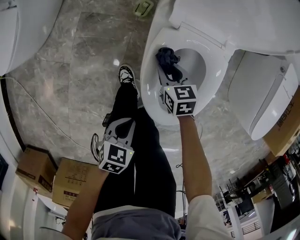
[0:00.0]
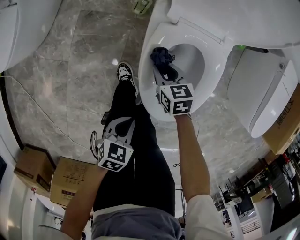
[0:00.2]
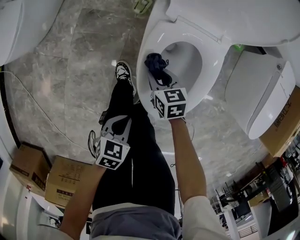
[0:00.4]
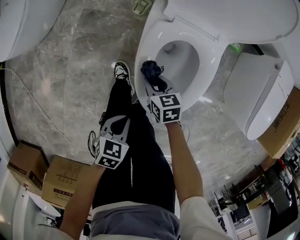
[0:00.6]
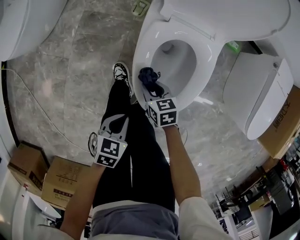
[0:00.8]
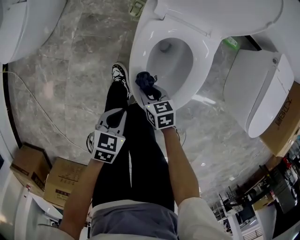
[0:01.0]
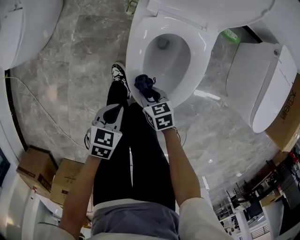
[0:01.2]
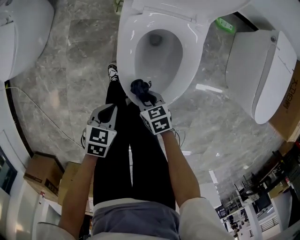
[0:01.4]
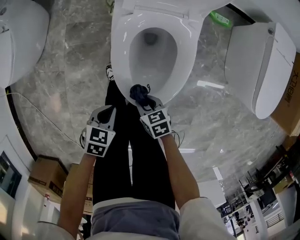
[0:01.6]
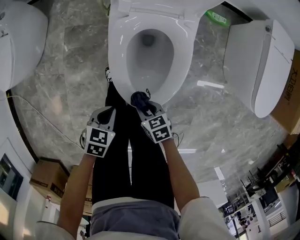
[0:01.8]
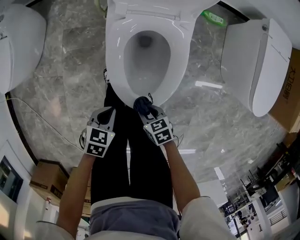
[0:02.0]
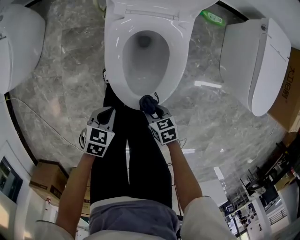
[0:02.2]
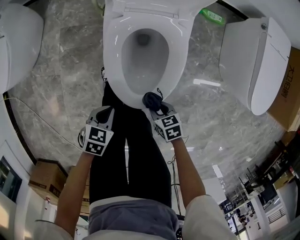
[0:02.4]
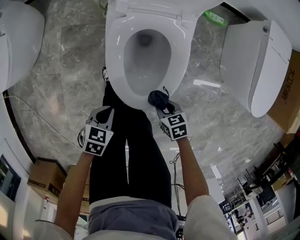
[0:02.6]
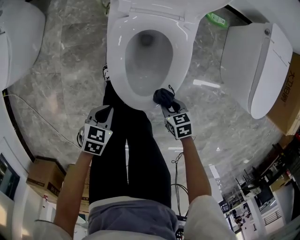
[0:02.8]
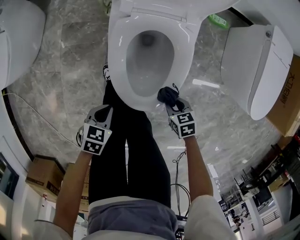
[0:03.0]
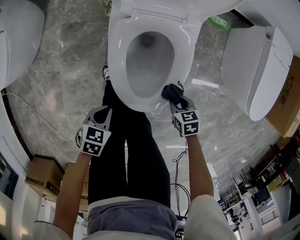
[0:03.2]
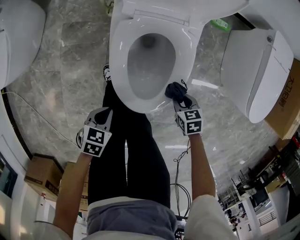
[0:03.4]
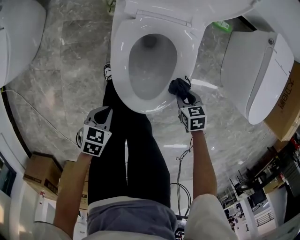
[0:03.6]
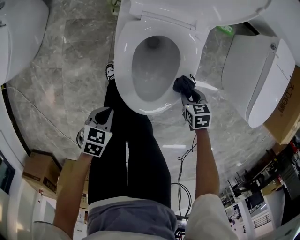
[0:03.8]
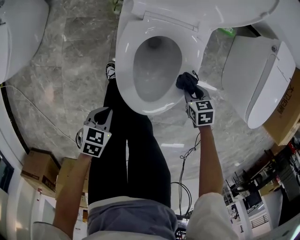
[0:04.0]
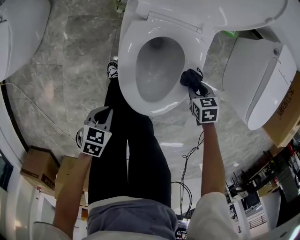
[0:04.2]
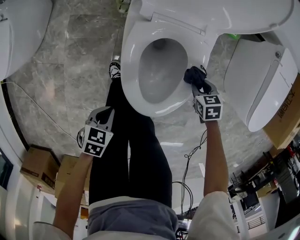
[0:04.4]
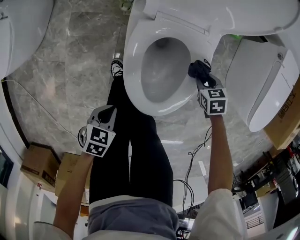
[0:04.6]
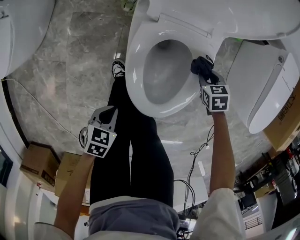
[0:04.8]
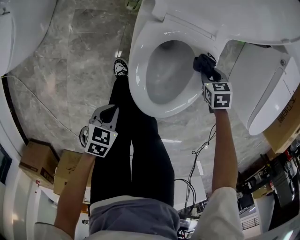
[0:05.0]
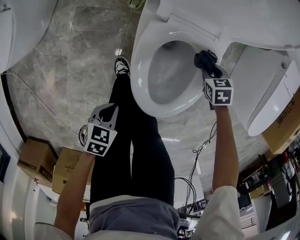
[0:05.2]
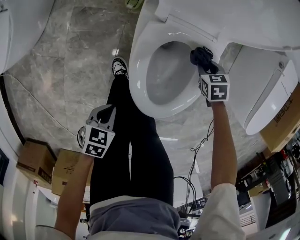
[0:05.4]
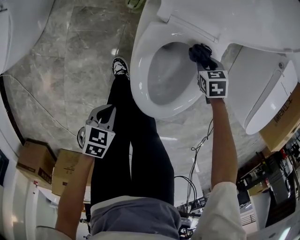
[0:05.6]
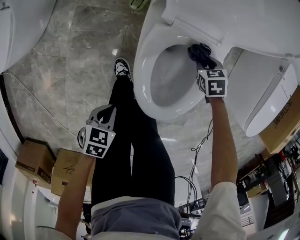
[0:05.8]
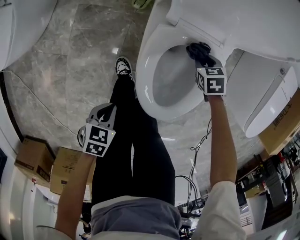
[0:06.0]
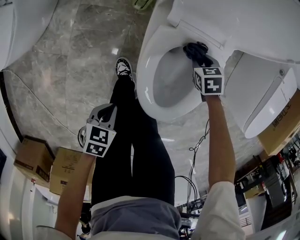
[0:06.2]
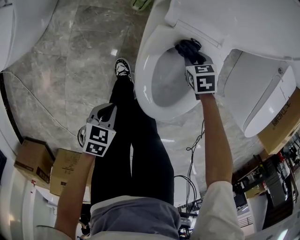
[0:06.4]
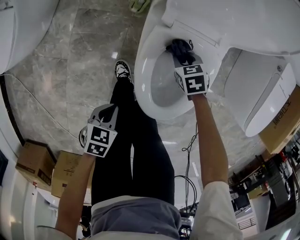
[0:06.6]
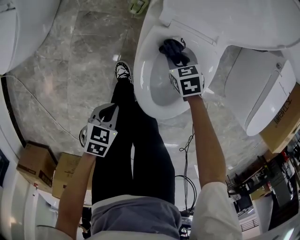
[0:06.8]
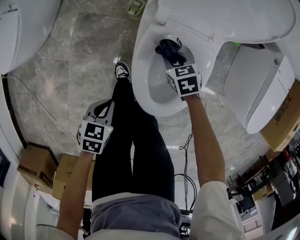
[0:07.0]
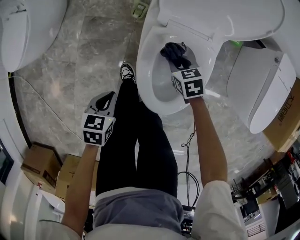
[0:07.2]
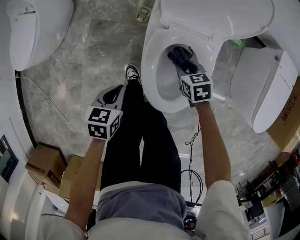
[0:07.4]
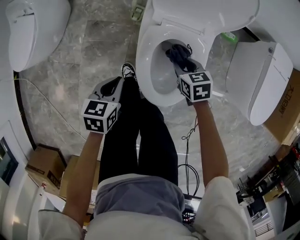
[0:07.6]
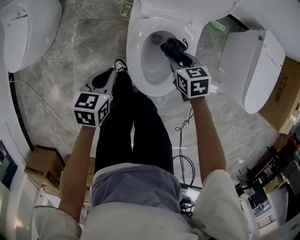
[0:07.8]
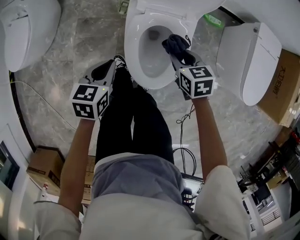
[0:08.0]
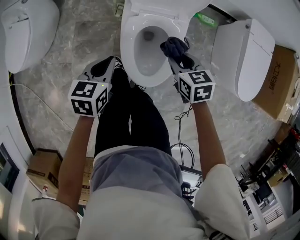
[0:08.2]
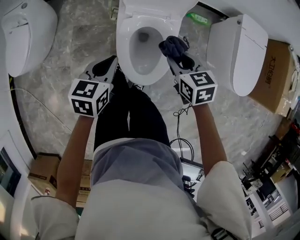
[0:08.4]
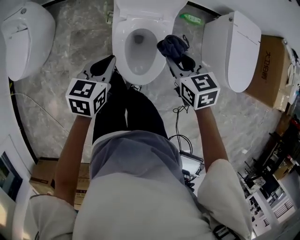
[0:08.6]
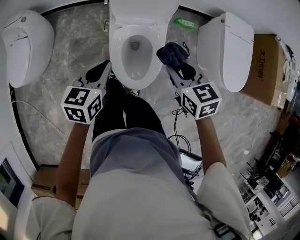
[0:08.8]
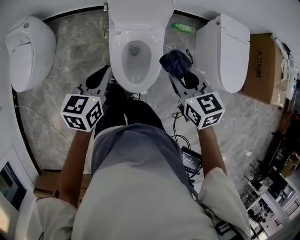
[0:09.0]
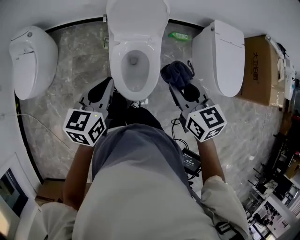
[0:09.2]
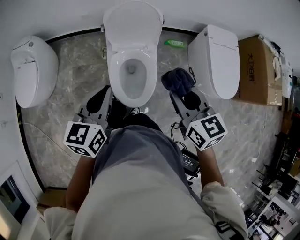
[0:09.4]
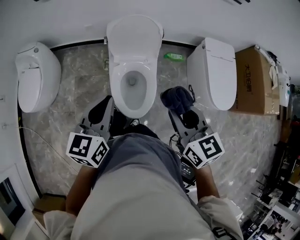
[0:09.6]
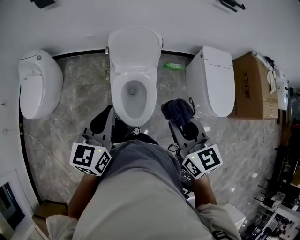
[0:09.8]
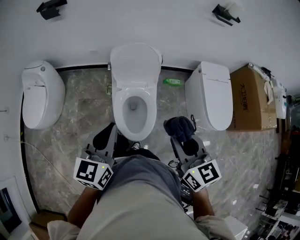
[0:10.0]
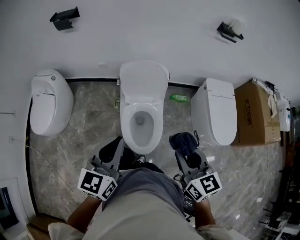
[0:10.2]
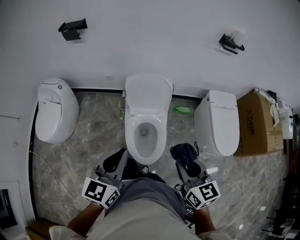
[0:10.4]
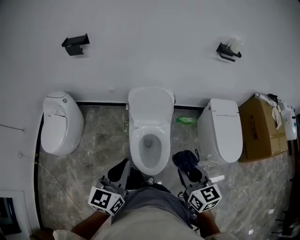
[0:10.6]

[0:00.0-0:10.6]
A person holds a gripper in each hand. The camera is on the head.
0:00.0 to 0:01.6: The right gripper goes about 20 cm backward.
0:01.6 to 0:03.0: The right gripper changes place by some 15 cm.
0:03.0 to 0:04.6: The right gripper travels forward by some 20 cm.
0:04.6 to 0:06.0: The right gripper ends up about 15 cm from where it was; the left gripper moves approximately 5 cm.
0:06.0 to 0:07.6: The right gripper shifts approximately 15 cm upward and backward, and turns by approximately 20 degrees. The left gripper travels upward and forward by about 15 cm, and changes its angle by roughly 20 degrees.
0:07.6 to 0:09.0: The left gripper is displaced upward and to the right by some 30 cm, and rotates about 20 degrees; the right gripper goes about 35 cm upward, and rotates roughly 20 degrees.
0:09.0 to 0:10.6: The two grippers go about 20 cm upward and backward. The left gripper changes its angle by approximately 20 degrees.

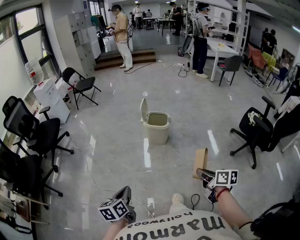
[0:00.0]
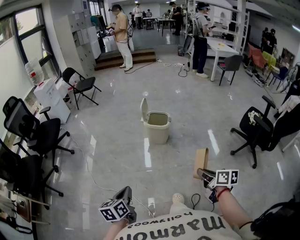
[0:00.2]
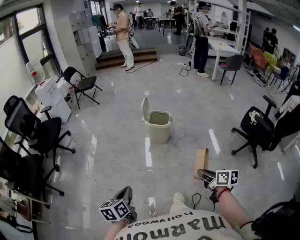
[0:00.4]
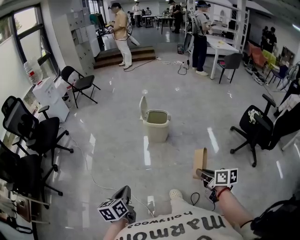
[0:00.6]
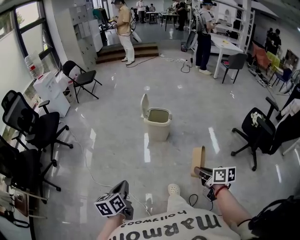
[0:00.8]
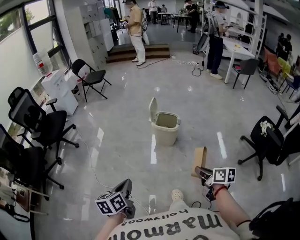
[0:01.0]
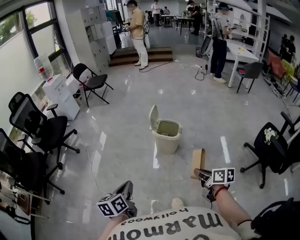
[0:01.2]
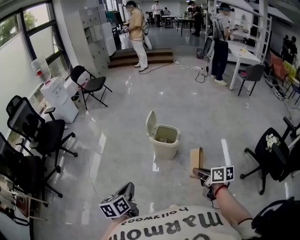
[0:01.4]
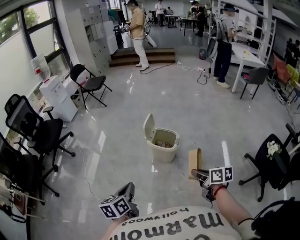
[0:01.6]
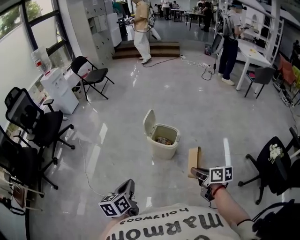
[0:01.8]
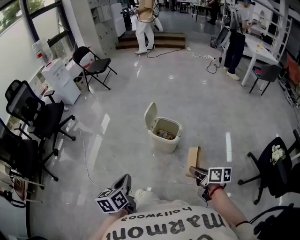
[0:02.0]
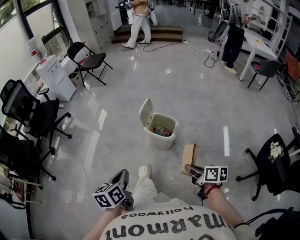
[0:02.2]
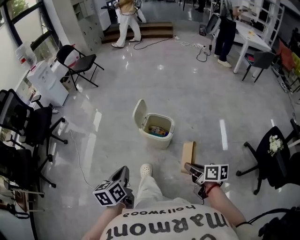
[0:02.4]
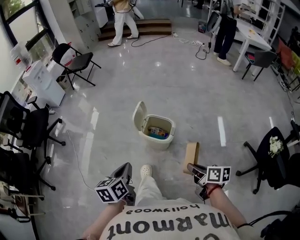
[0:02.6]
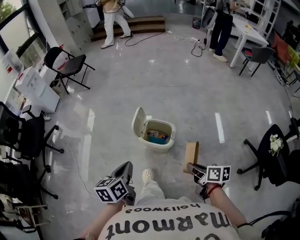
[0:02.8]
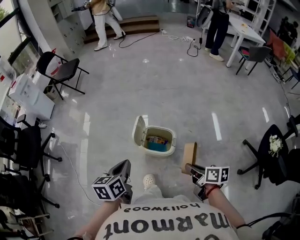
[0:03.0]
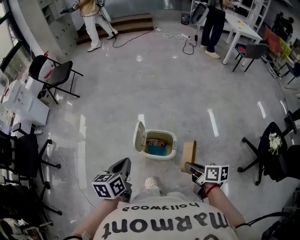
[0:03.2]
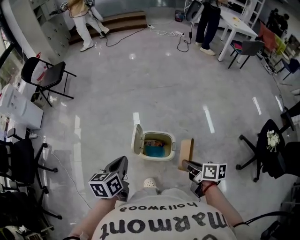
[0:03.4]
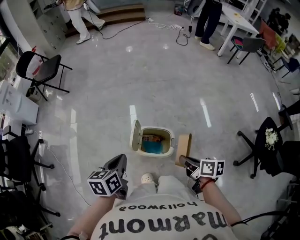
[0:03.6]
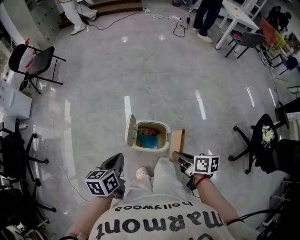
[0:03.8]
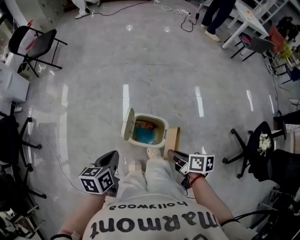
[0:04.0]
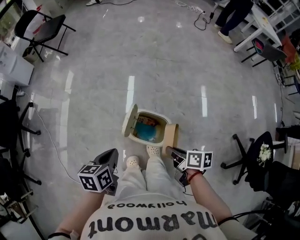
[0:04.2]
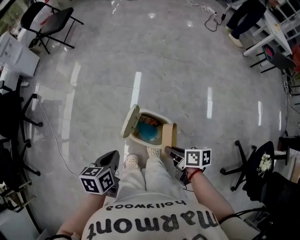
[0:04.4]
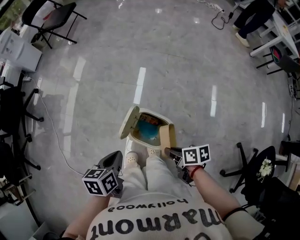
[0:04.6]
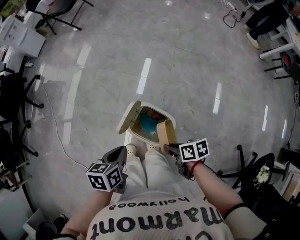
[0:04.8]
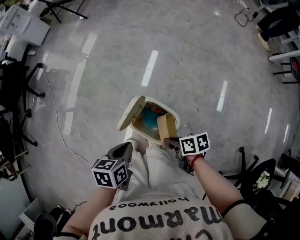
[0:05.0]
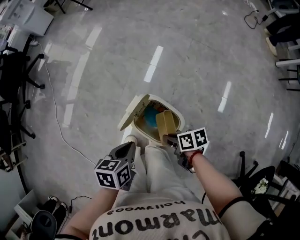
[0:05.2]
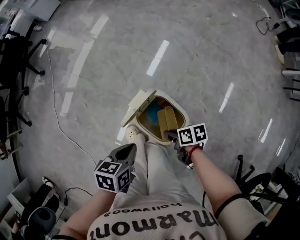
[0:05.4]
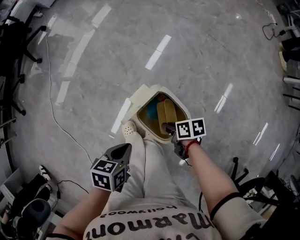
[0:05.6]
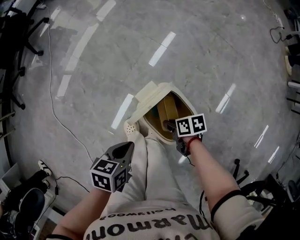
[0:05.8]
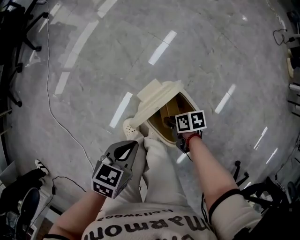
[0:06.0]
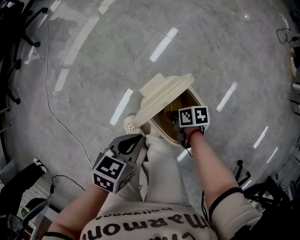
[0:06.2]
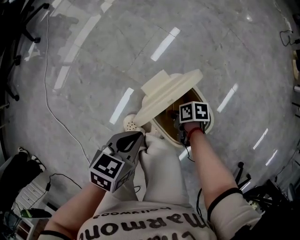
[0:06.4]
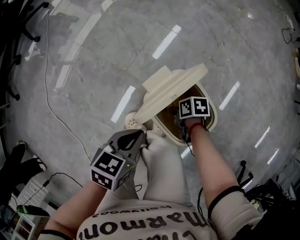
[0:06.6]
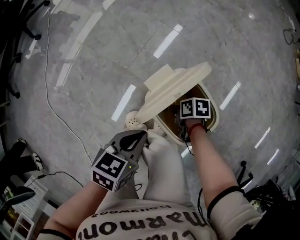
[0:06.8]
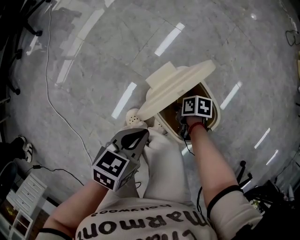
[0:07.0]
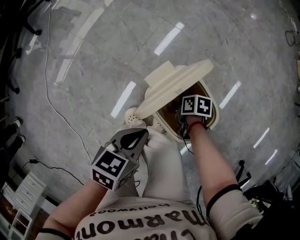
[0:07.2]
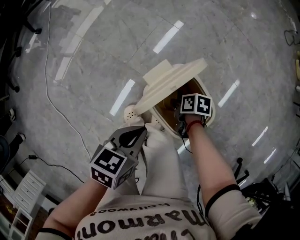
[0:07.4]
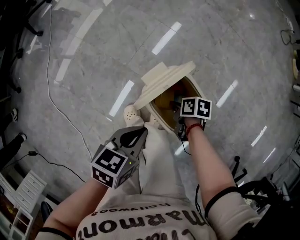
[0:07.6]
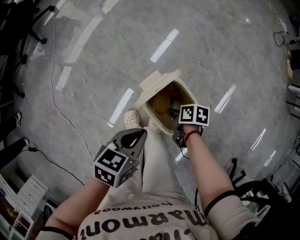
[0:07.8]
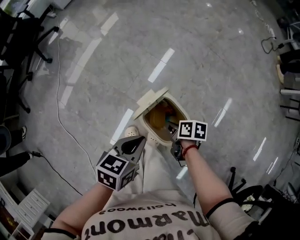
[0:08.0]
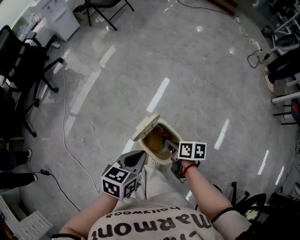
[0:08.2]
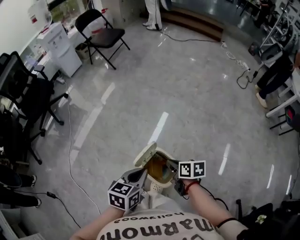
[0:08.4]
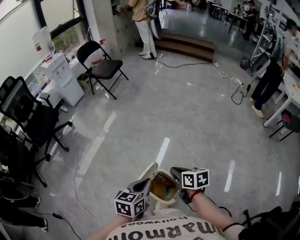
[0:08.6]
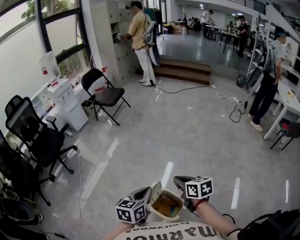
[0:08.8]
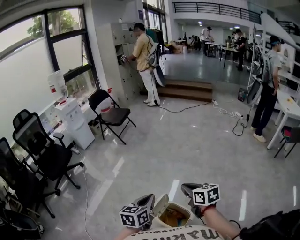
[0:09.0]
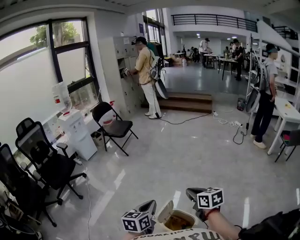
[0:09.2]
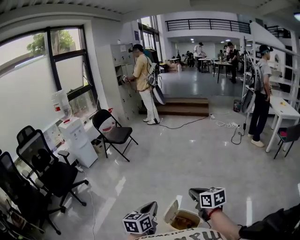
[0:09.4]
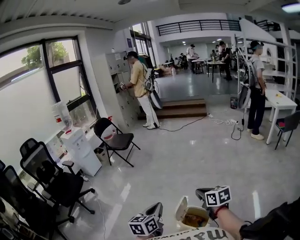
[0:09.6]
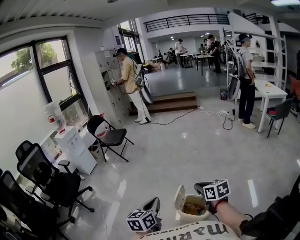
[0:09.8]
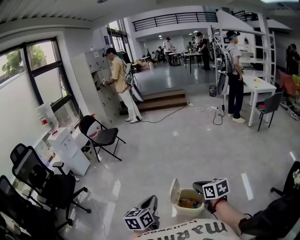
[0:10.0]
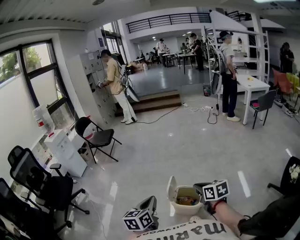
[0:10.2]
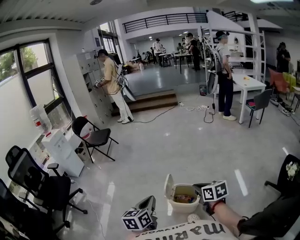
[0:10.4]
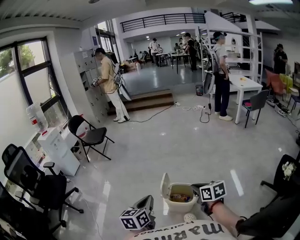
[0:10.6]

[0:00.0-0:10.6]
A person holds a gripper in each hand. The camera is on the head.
0:00.0 to 0:01.6: The right gripper moves forward, approximately 25 cm, while the left gripper heads forward and to the right, covering roughly 25 cm.
0:01.6 to 0:03.0: Both grippers travel together forward, roughly 25 cm.
0:03.0 to 0:04.6: The left gripper ends up some 15 cm from where it was. The right gripper shifts by approximately 20 cm, and changes its angle by roughly 30 degrees.
0:04.6 to 0:06.0: The left gripper shifts roughly 15 cm downward, while the right gripper heads downward, covering about 30 cm, and changes its angle by roughly 30 degrees.
0:06.0 to 0:07.6: The right gripper moves some 10 cm downward and comes back.
0:07.6 to 0:09.0: The left gripper is displaced upward by roughly 35 cm, and rotates some 30 degrees, while the right gripper heads upward, covering approximately 50 cm, and changes its angle by some 60 degrees.
0:09.0 to 0:10.6: The left gripper goes about 25 cm backward and to the left, while the right gripper travels backward by roughly 30 cm, and turns by some 20 degrees.

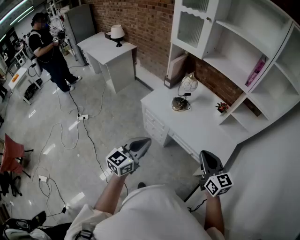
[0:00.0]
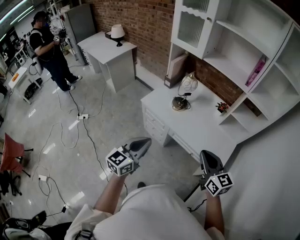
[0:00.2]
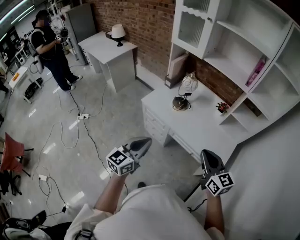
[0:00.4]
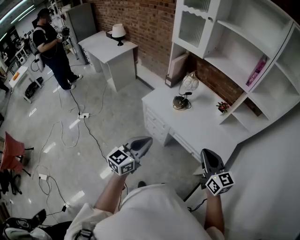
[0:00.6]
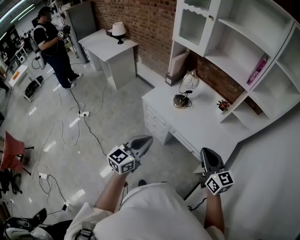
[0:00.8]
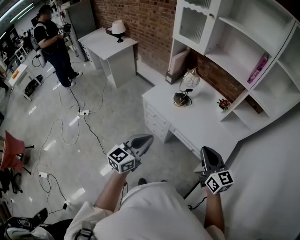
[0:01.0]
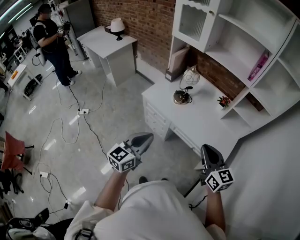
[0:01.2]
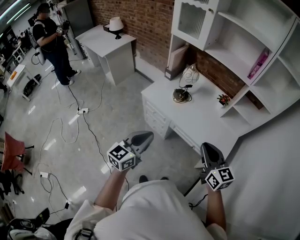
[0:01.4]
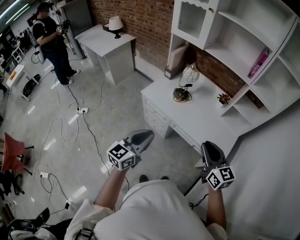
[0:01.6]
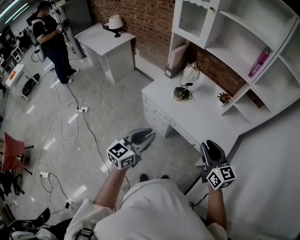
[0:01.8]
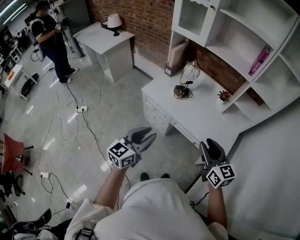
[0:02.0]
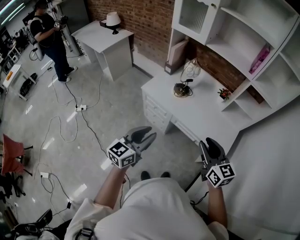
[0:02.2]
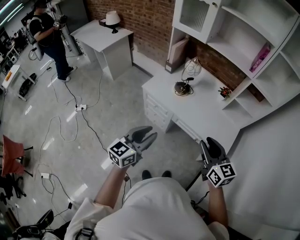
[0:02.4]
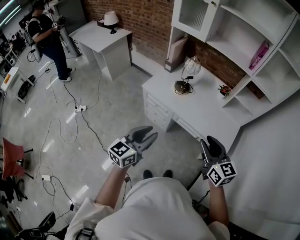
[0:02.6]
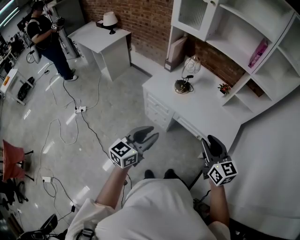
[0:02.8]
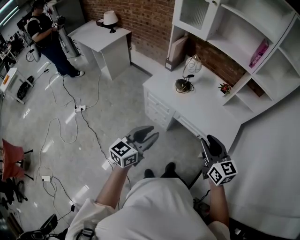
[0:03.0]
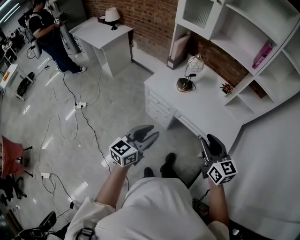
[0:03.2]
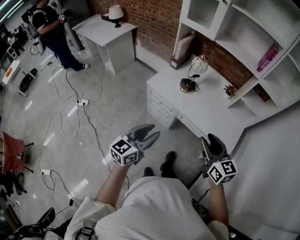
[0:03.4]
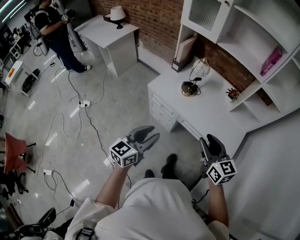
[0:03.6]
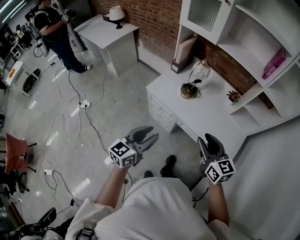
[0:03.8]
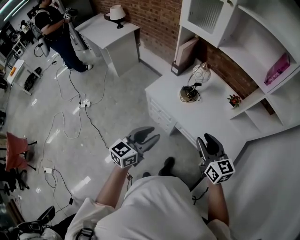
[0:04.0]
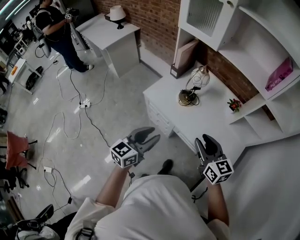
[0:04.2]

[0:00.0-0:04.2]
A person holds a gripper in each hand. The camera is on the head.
0:00.0 to 0:01.4: The two grippers keep their place.
0:01.4 to 0:02.8: The right gripper is displaced to the left by approximately 5 cm, and opens its fingers. The left gripper ends up roughly 5 cm from where it was, and opens up.
0:02.8 to 0:04.2: Both grippers move forward, some 20 cm.
